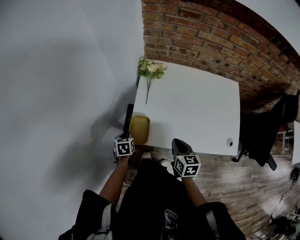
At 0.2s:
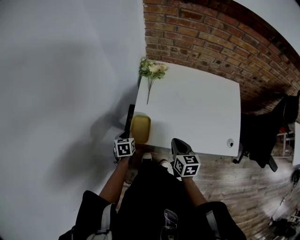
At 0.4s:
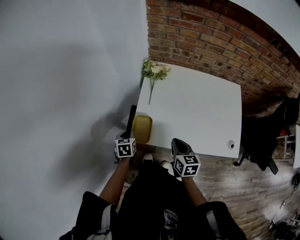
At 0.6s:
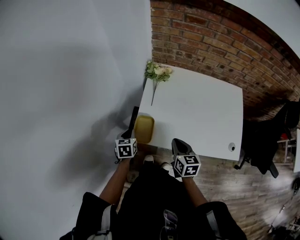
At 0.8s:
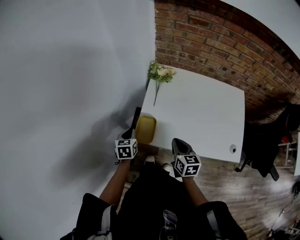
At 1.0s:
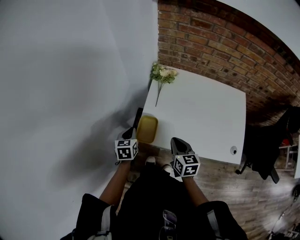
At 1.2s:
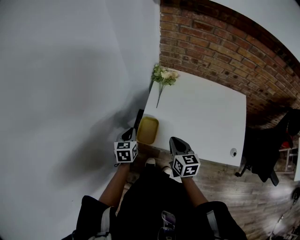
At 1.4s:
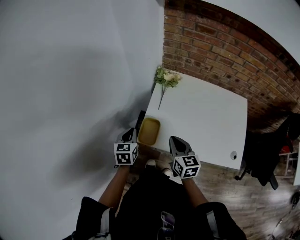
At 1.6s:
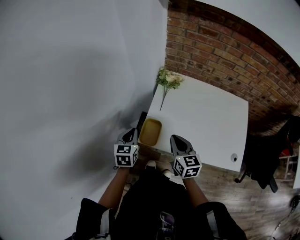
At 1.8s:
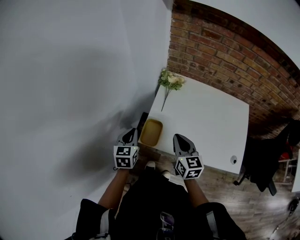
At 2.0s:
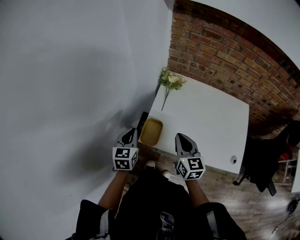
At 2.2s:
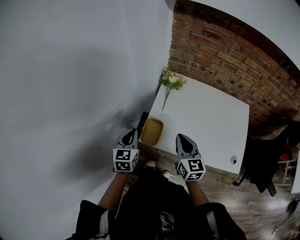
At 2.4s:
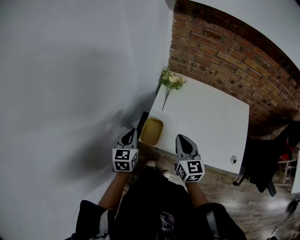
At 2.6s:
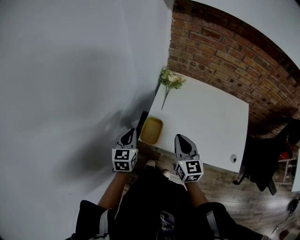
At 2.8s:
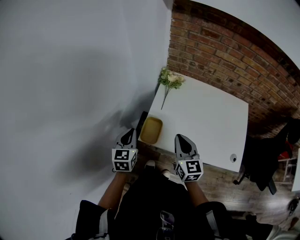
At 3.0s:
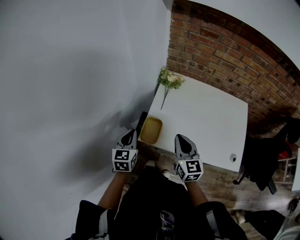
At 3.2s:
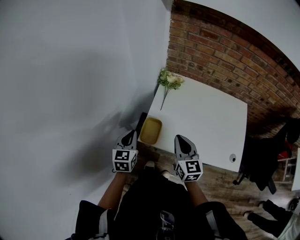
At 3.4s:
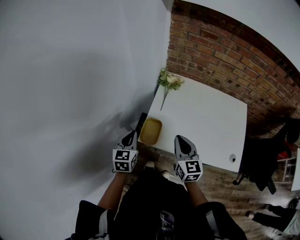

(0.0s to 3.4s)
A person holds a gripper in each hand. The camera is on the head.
0.0s - 1.6s: The left gripper heads upward, covering approximately 20 cm, and turns by approximately 20 degrees. The right gripper is displaced upward and to the left by approximately 10 cm, and changes its angle by approximately 20 degrees.
1.6s - 3.4s: The grippers move only a little.

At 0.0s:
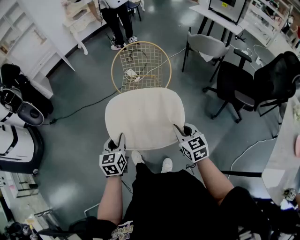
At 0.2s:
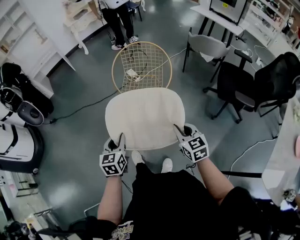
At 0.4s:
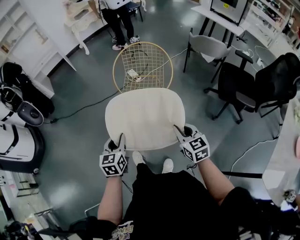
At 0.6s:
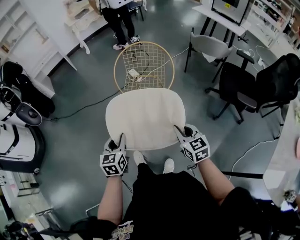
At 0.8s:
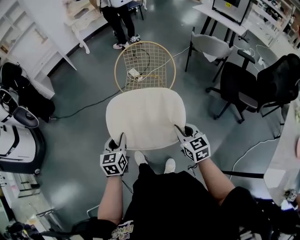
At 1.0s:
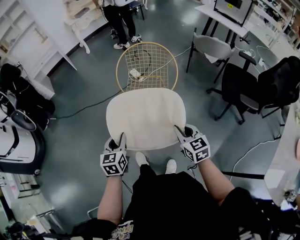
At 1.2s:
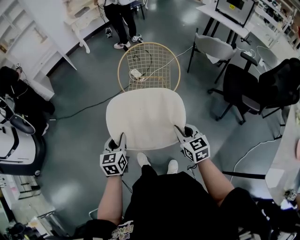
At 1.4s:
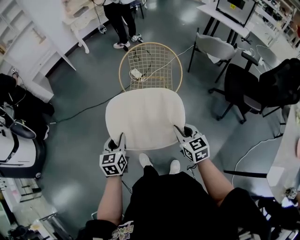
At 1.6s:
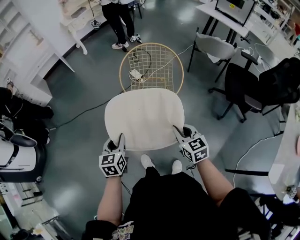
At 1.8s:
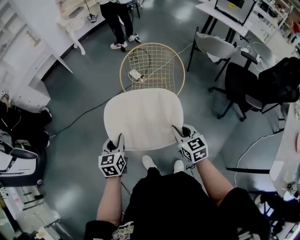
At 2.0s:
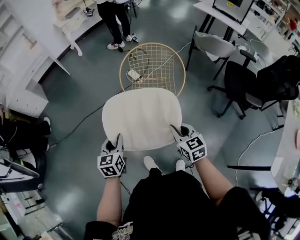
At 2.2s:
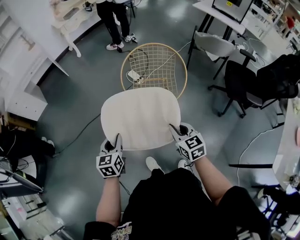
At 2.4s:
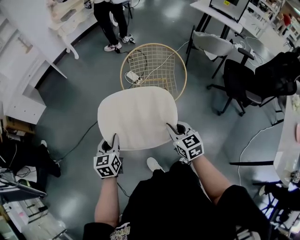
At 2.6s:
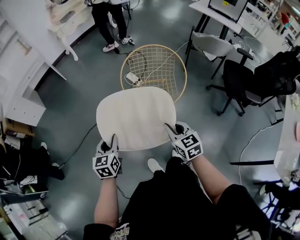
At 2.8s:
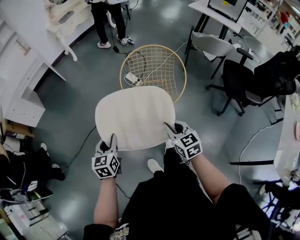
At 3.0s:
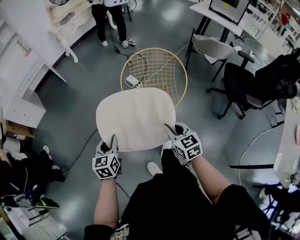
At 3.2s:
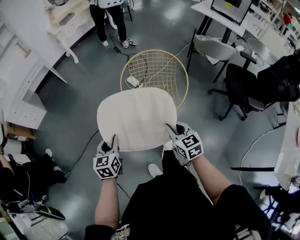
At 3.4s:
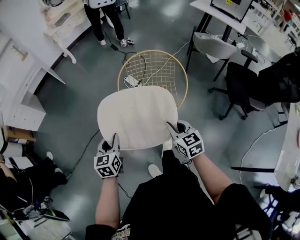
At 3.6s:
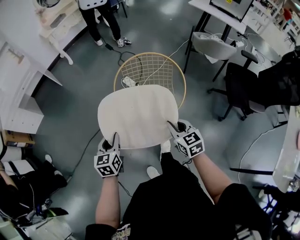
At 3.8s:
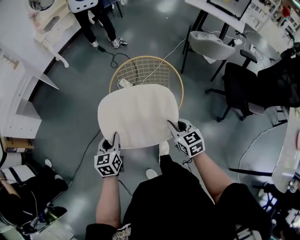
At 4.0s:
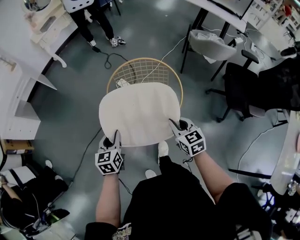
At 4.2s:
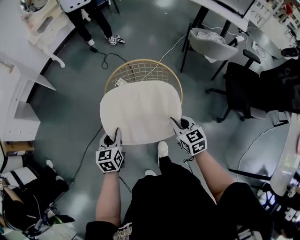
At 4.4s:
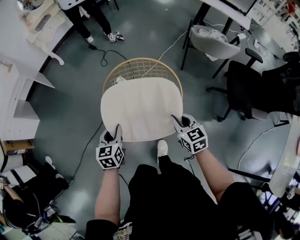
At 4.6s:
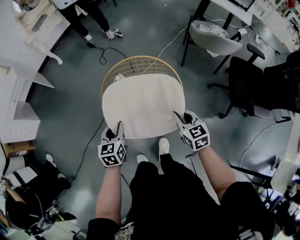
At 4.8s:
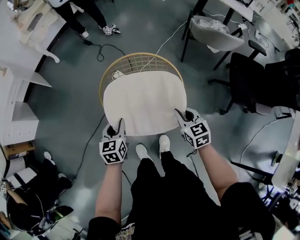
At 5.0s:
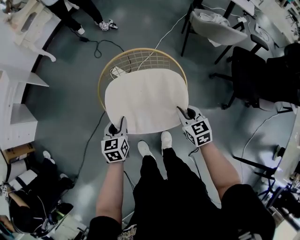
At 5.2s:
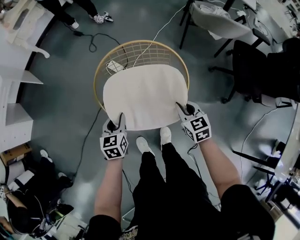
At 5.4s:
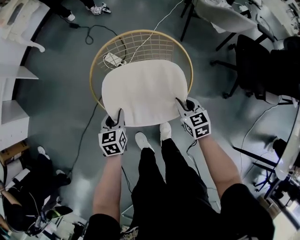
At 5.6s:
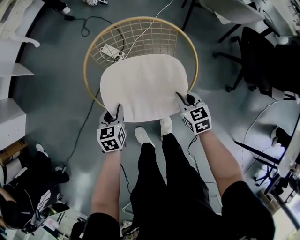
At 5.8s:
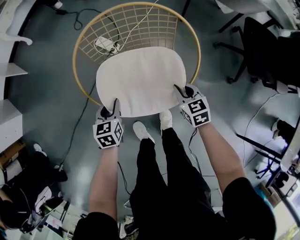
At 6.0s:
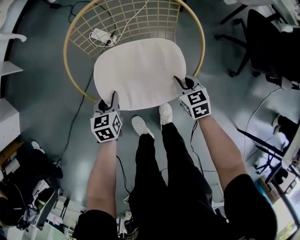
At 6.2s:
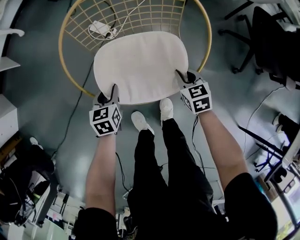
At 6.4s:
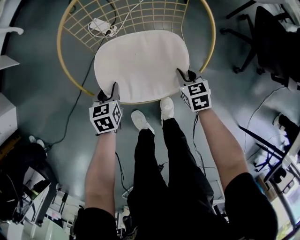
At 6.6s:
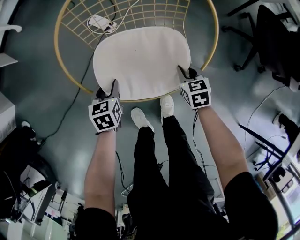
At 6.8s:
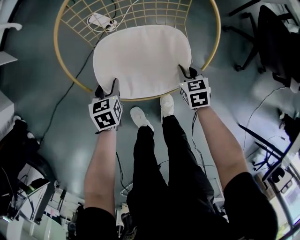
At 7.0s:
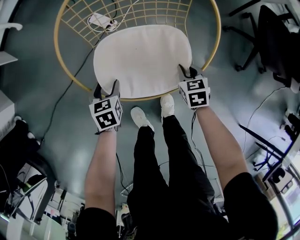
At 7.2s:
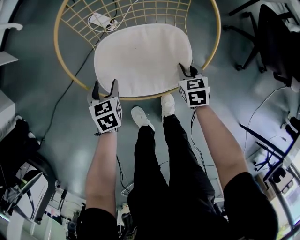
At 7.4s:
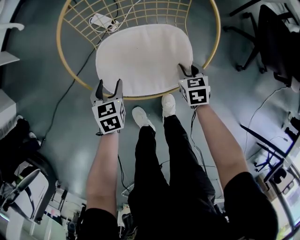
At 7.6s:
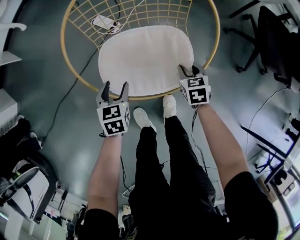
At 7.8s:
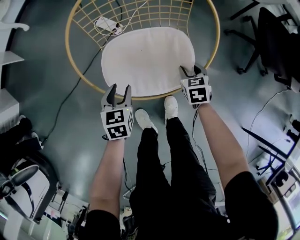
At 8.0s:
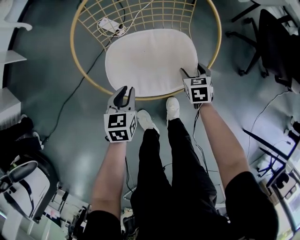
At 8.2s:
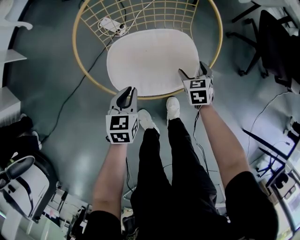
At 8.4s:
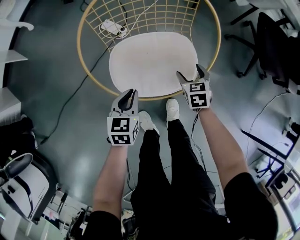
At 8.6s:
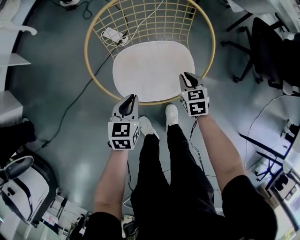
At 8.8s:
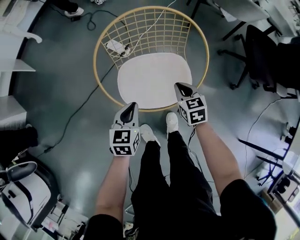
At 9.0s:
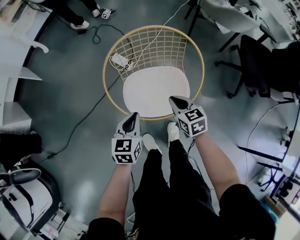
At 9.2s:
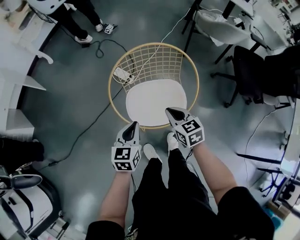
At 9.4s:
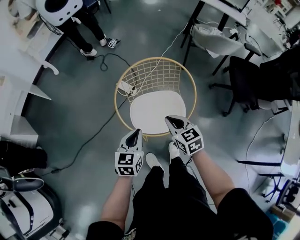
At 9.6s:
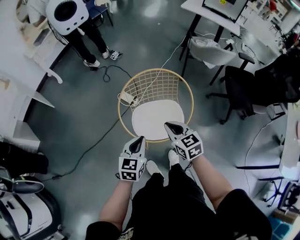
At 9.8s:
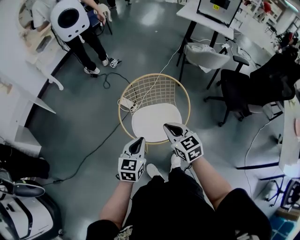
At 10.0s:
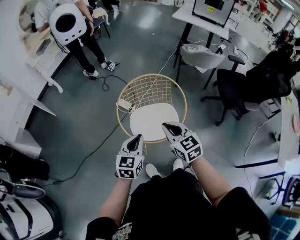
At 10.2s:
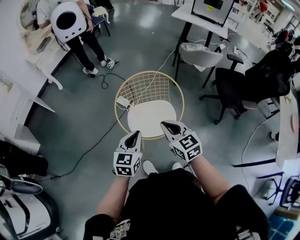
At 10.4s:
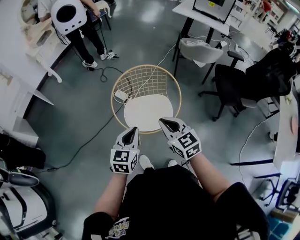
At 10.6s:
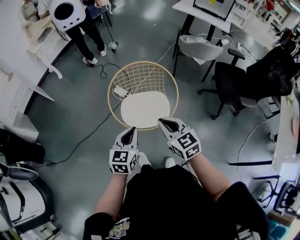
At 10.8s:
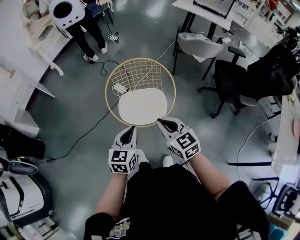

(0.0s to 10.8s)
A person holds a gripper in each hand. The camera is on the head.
0.0s - 1.6s: The right gripper shifts some 10 cm to the left and forward. Meanwhile the left gripper is displaced forward and to the left by about 10 cm.
1.6s - 3.0s: Both grippers move forward and to the left, roughly 15 cm.
3.0s - 4.6s: The two grippers go some 35 cm forward and to the right.
4.6s - 6.2s: The grippers both shift downward by about 30 cm.
6.2s - 7.8s: The grippers make only small movements.
7.8s - 9.2s: The left gripper is displaced upward by about 25 cm, and closes its fingers, while the right gripper shifts roughly 30 cm upward and to the left, swivels some 30 degrees, and closes.
9.2s - 10.8s: The two grippers go about 25 cm upward and backward.

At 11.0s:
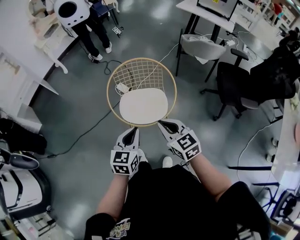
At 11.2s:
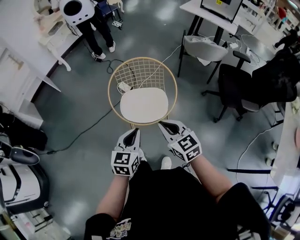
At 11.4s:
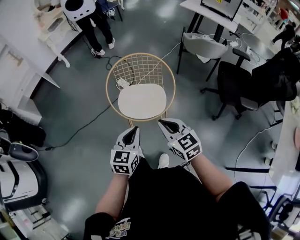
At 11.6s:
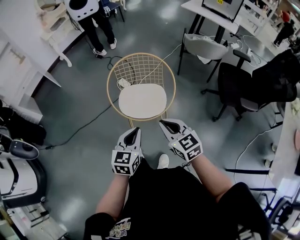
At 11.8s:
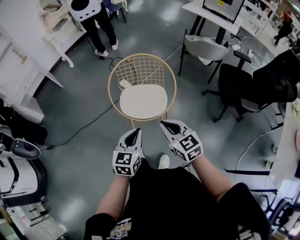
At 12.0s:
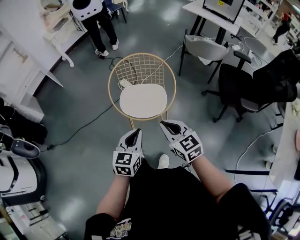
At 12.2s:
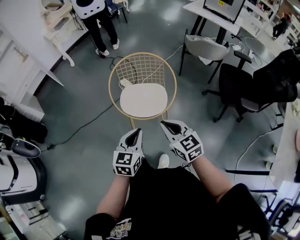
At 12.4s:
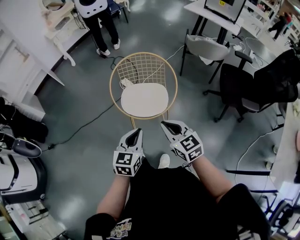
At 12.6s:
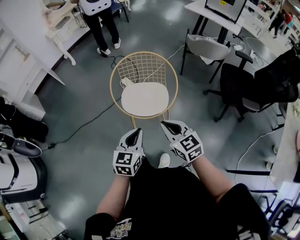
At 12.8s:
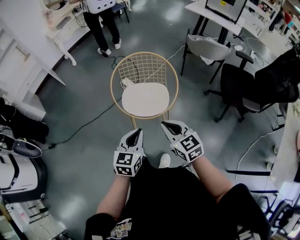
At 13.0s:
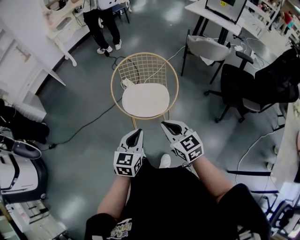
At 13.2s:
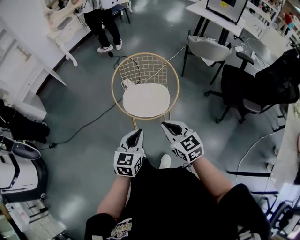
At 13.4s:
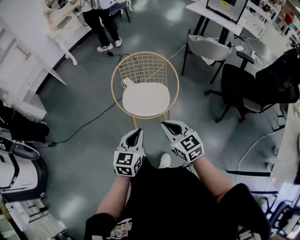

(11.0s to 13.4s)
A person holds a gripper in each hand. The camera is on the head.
11.0s - 12.2s: The grippers both shift backward by some 10 cm.
12.2s - 13.4s: Neither gripper changes place.

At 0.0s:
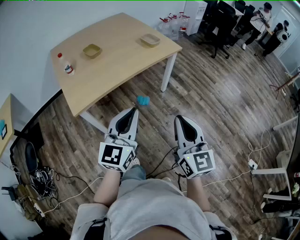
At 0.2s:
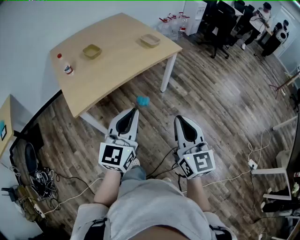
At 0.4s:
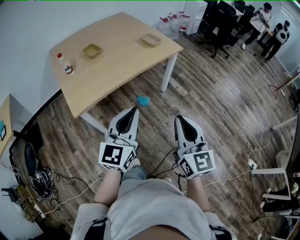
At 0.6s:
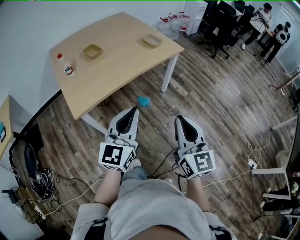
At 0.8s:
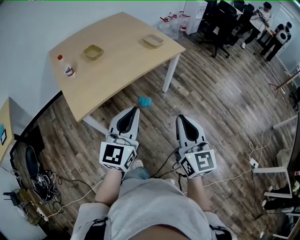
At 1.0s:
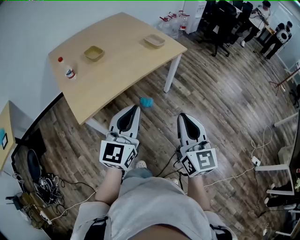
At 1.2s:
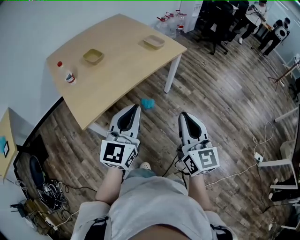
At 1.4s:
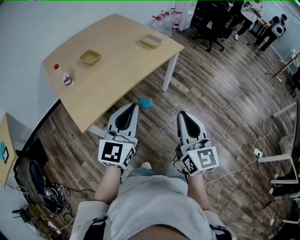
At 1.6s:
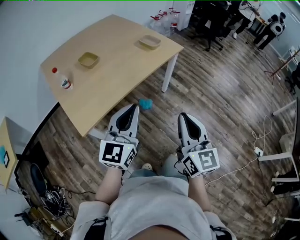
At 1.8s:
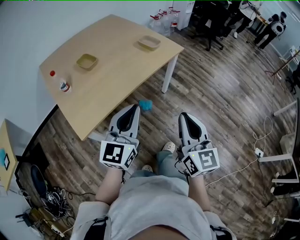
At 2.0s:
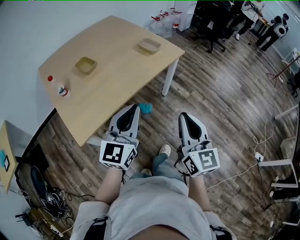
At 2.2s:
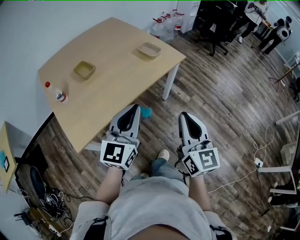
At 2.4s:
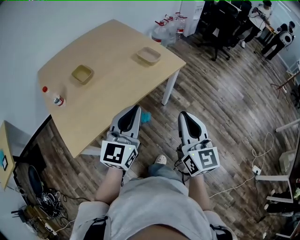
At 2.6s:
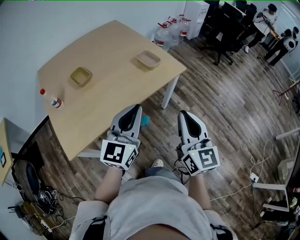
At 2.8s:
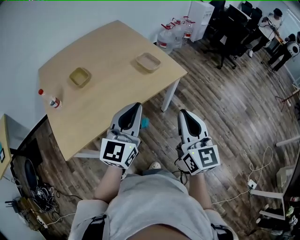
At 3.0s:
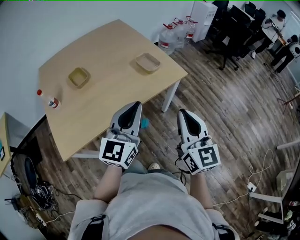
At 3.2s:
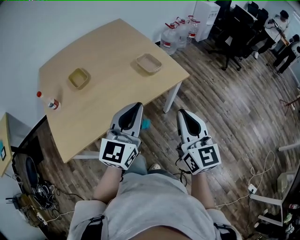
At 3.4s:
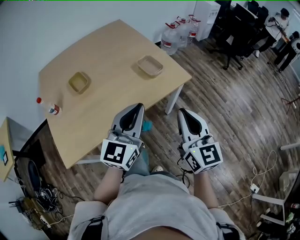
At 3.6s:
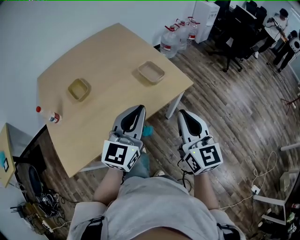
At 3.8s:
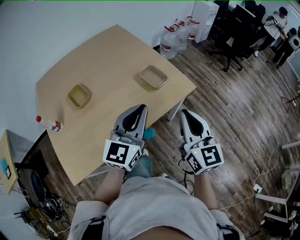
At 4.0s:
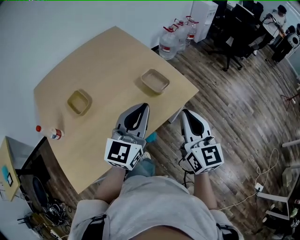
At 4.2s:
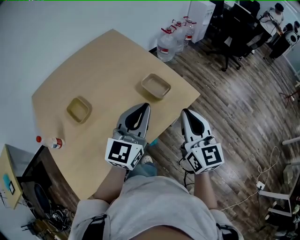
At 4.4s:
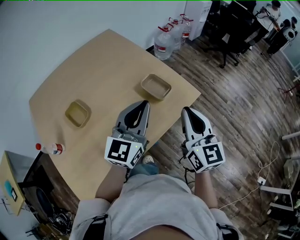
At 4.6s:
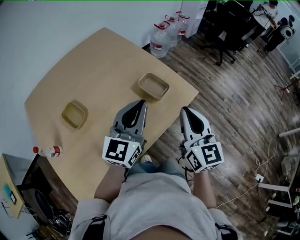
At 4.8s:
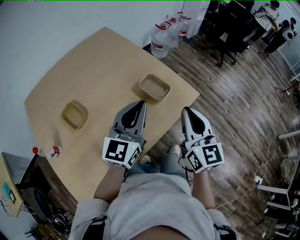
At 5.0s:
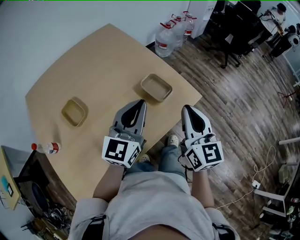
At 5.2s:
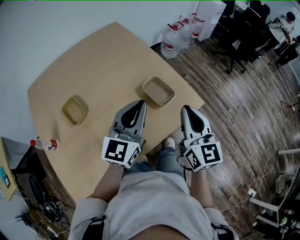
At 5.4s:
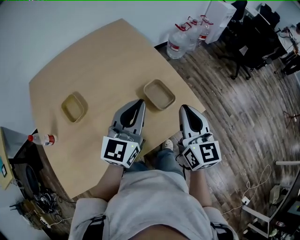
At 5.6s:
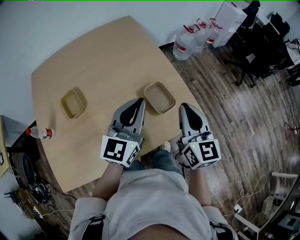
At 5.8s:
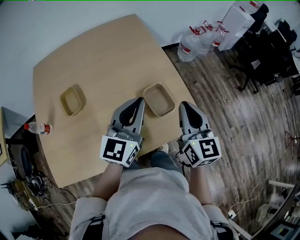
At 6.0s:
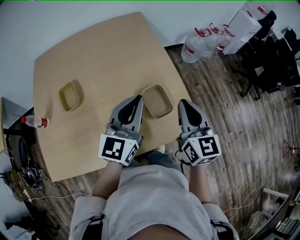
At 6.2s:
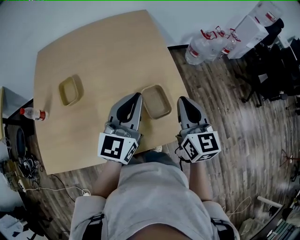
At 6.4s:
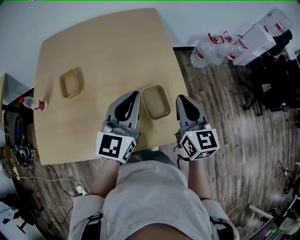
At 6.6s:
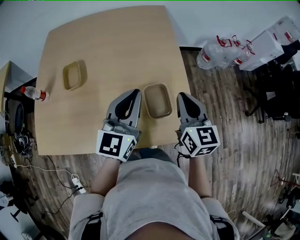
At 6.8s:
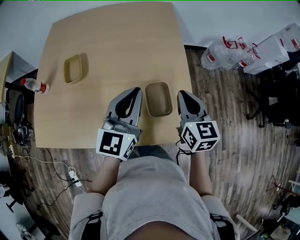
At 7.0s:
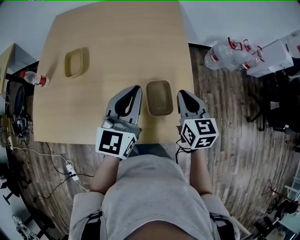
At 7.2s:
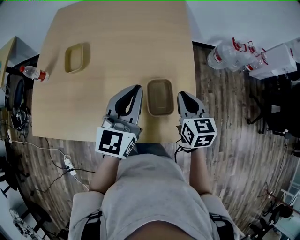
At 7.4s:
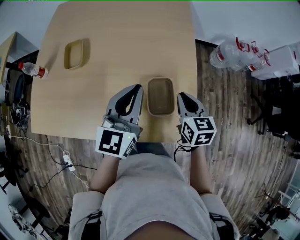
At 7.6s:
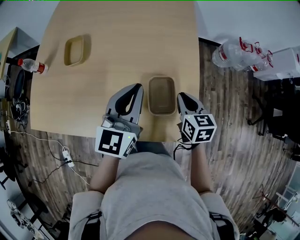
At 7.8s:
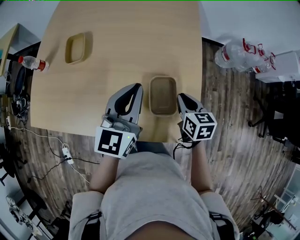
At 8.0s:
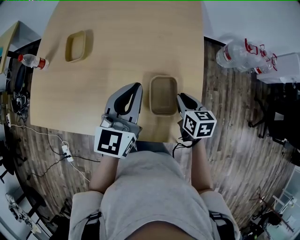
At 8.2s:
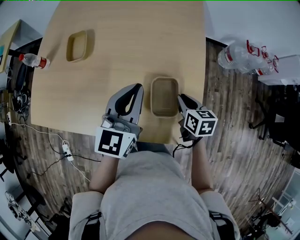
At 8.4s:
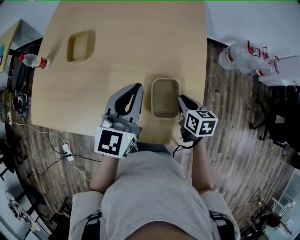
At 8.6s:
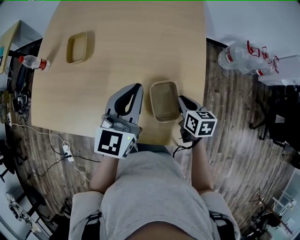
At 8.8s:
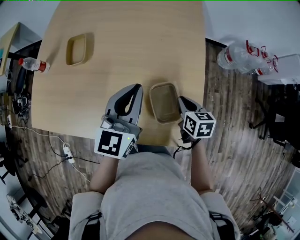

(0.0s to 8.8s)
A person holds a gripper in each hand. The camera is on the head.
0.0s - 1.4s: The two grippers go about 10 cm to the left and forward.
1.4s - 3.0s: The right gripper heads forward, covering roughly 30 cm. The left gripper is displaced forward and to the right by about 30 cm.
3.0s - 4.4s: Both grippers travel together forward, about 25 cm.
4.4s - 5.8s: Both grippers travel together forward, approximately 15 cm. The left gripper swivels about 20 degrees.
5.8s - 7.4s: The left gripper heads downward, covering some 5 cm, and rotates roughly 30 degrees; the right gripper heads downward, covering about 15 cm, and changes its angle by about 40 degrees.
7.4s - 8.8s: The right gripper is displaced downward by some 10 cm.
